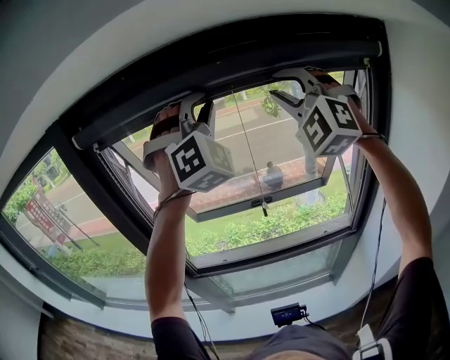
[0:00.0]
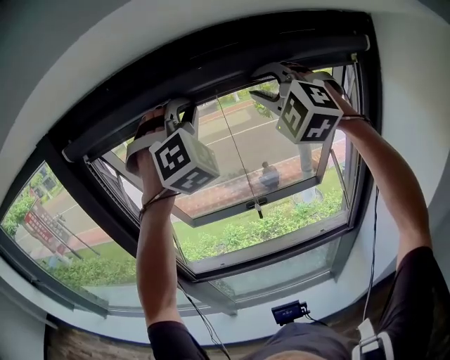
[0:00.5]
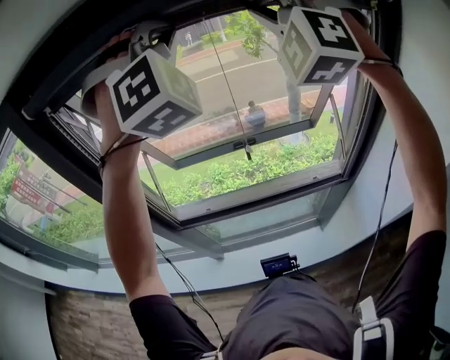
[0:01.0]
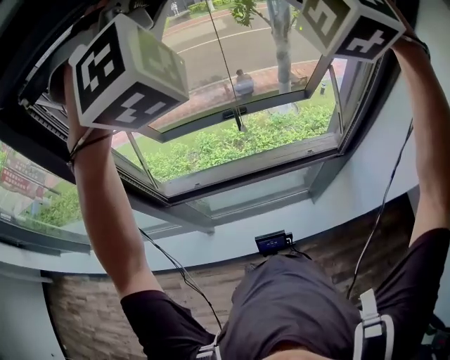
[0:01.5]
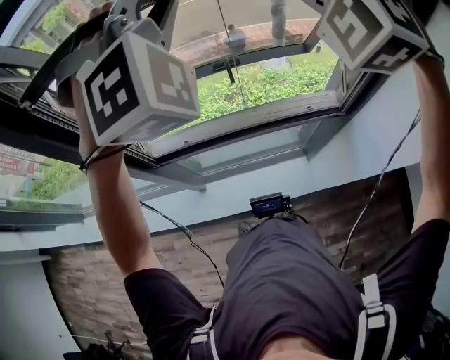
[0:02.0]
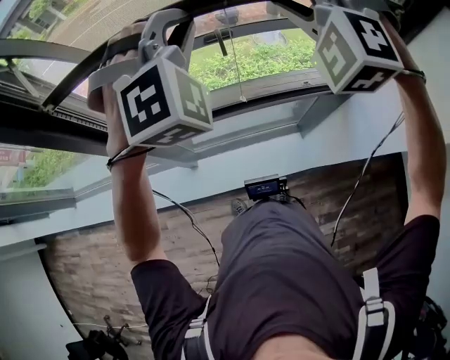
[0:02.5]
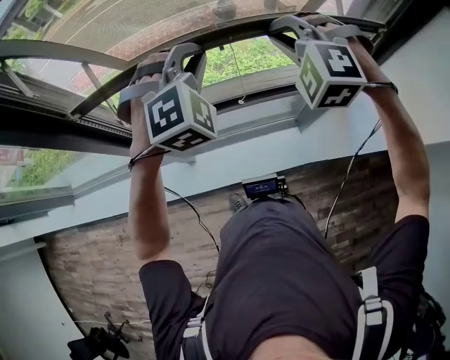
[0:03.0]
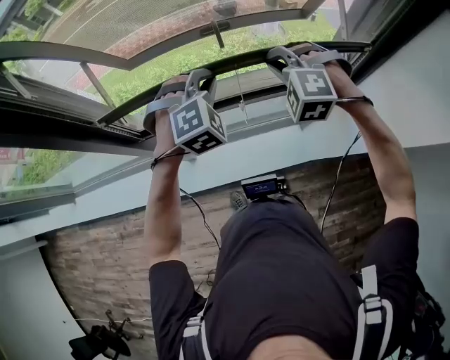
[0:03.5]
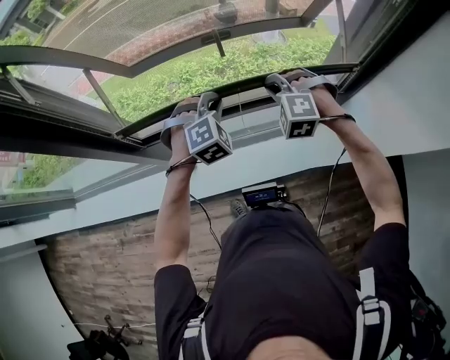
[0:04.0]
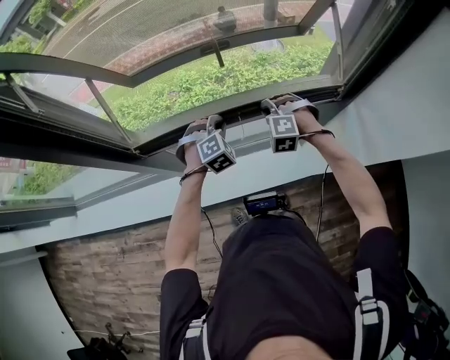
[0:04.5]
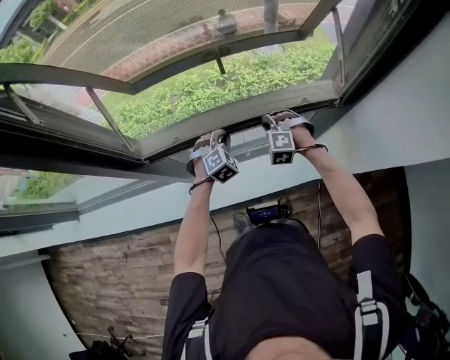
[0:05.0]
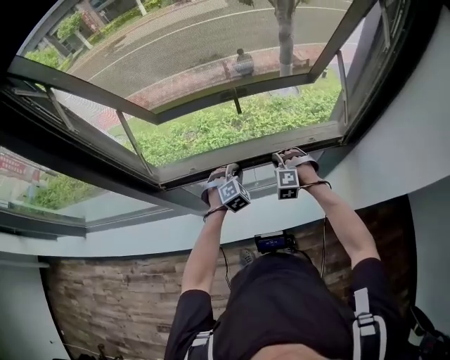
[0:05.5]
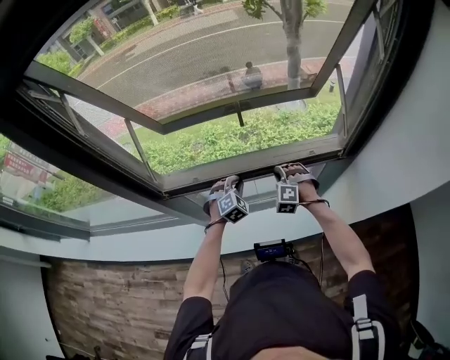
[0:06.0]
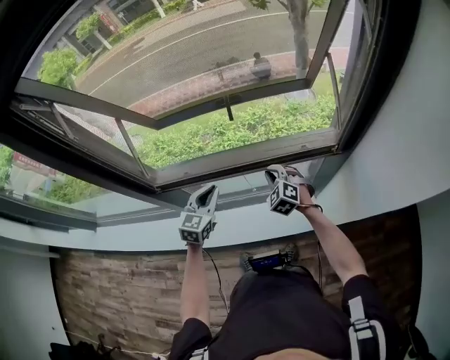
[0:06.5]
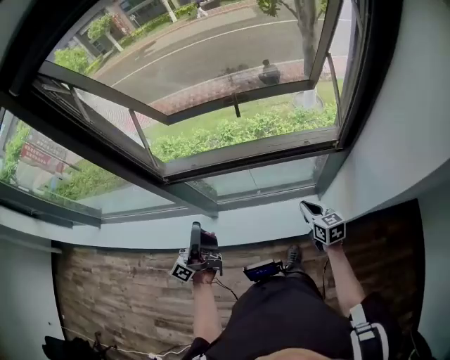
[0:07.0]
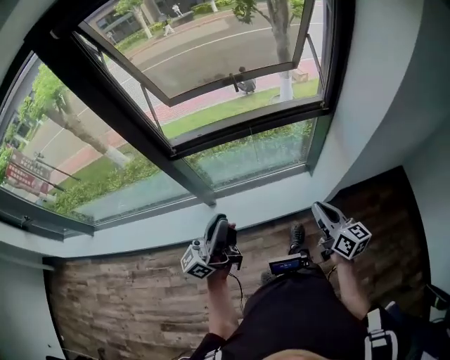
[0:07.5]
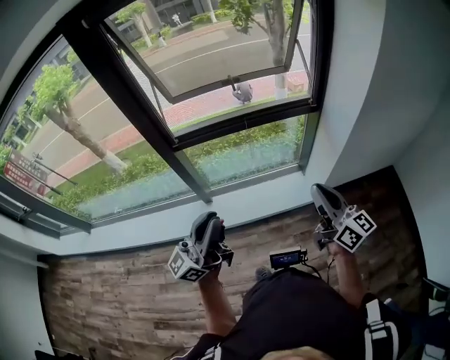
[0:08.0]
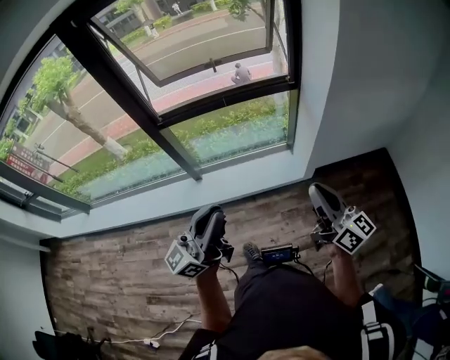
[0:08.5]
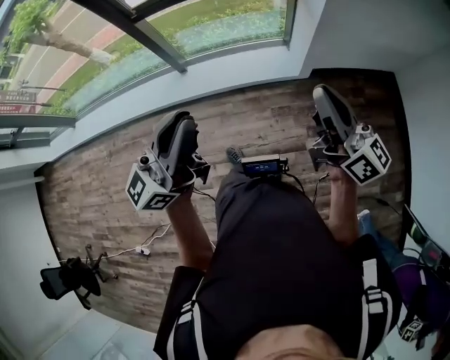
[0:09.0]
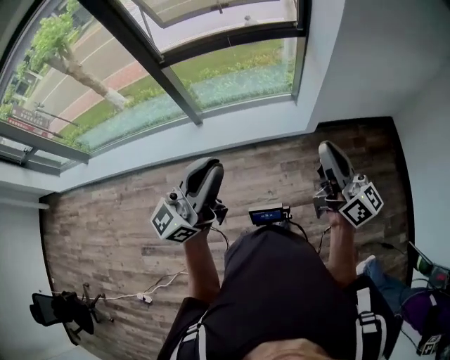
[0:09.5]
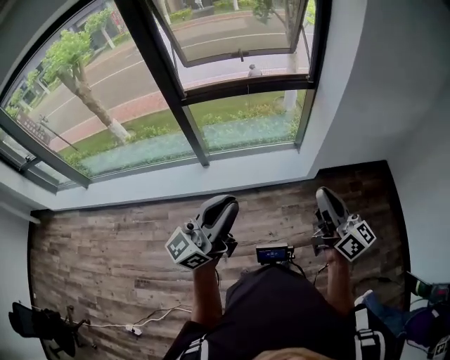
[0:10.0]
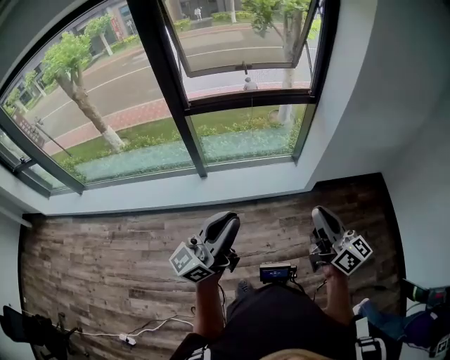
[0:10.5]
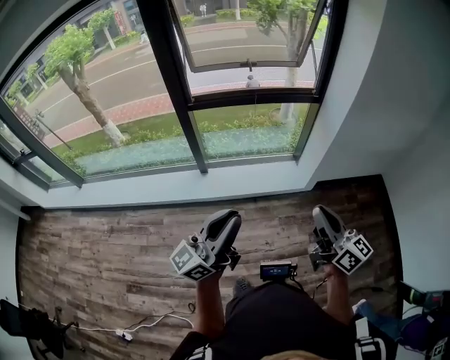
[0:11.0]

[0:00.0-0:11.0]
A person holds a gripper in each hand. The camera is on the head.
0:00.0 to 0:02.0: Both grippers move downward, roughly 15 cm. The right gripper changes its angle by about 30 degrees, and closes its fingers.
0:02.0 to 0:03.5: The grippers both shift downward by approximately 35 cm. The right gripper changes its angle by approximately 30 degrees. The left gripper tilts its fingers some 30 degrees downward.
0:03.5 to 0:05.5: Both grippers move downward, approximately 20 cm.
0:05.5 to 0:07.5: The two grippers travel together, backward, roughly 40 cm. The right gripper twists about 100 degrees clockwise, seen from behind, while the left gripper goes some 25 cm upward, and tips its fingers upward by some 80 degrees.
0:07.5 to 0:09.0: The left gripper moves backward and to the right, about 35 cm, and rotates roughly 20 degrees. Meanwhile the right gripper is displaced backward, to the right and upward by some 30 cm, and changes its angle by approximately 20 degrees.
0:09.0 to 0:11.0: Both grippers travel together to the left and backward, approximately 15 cm.

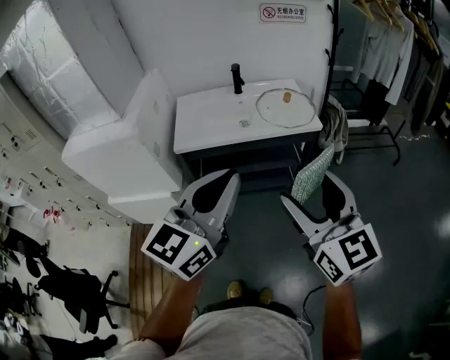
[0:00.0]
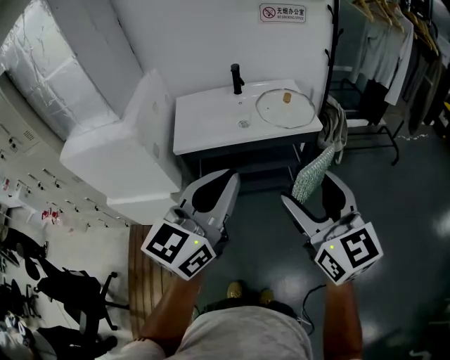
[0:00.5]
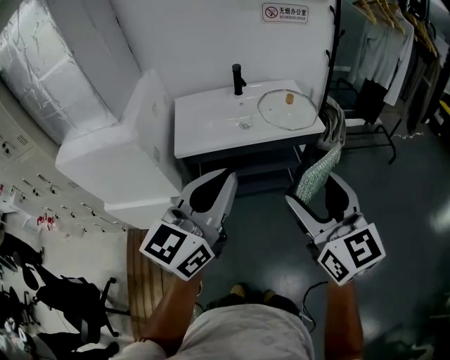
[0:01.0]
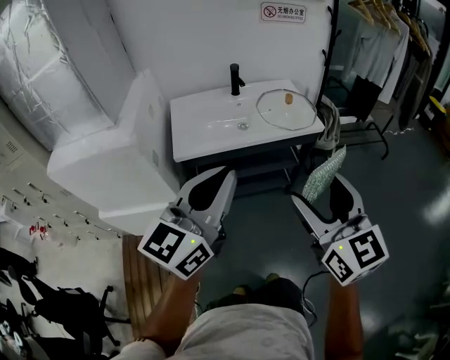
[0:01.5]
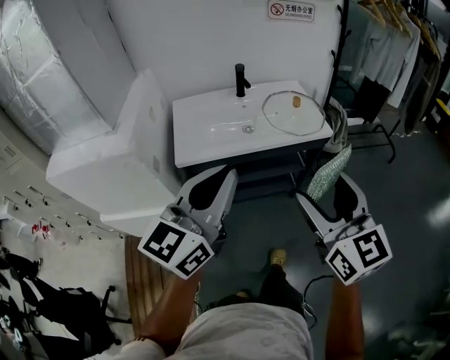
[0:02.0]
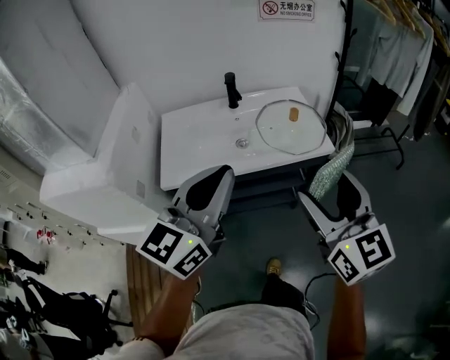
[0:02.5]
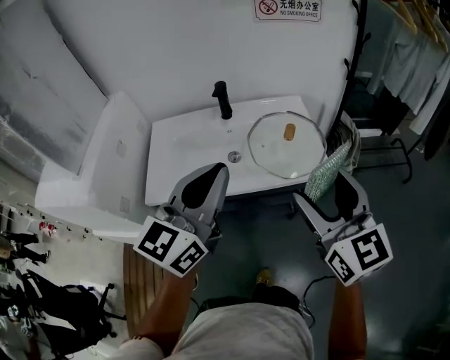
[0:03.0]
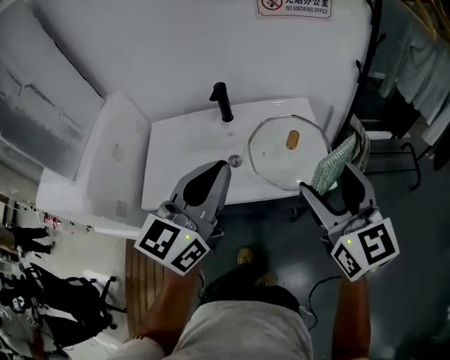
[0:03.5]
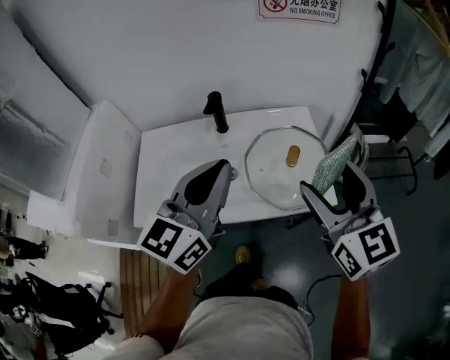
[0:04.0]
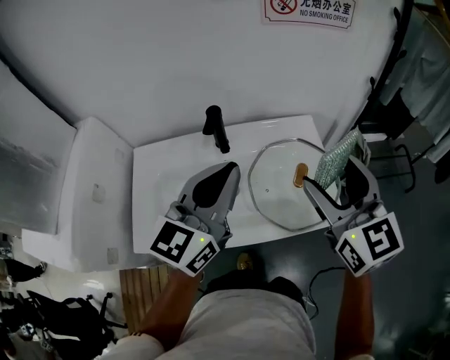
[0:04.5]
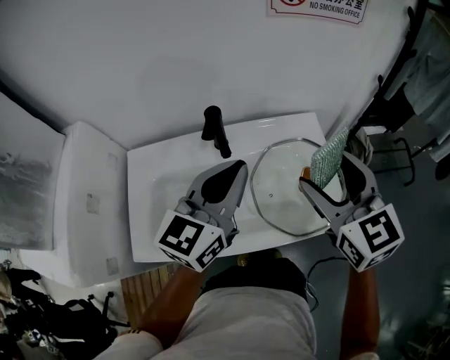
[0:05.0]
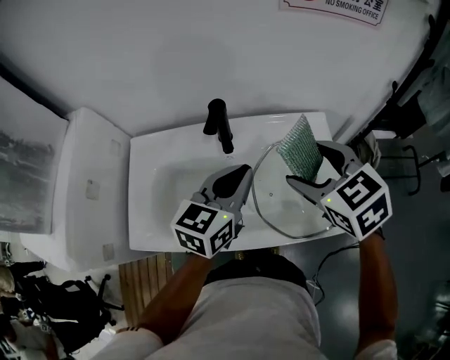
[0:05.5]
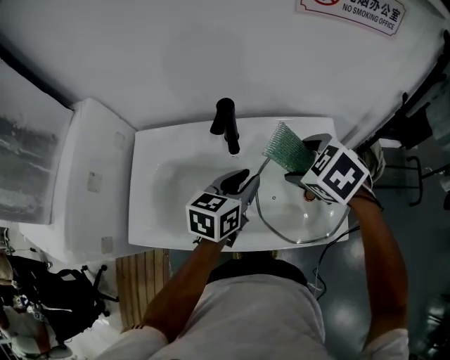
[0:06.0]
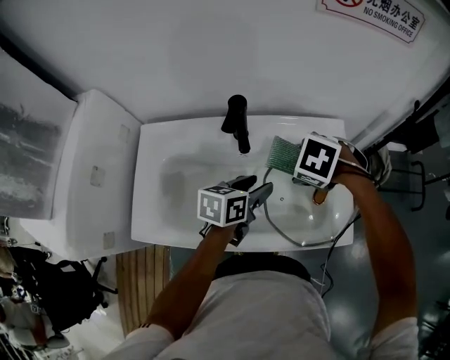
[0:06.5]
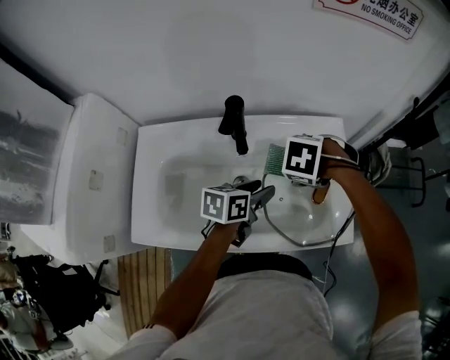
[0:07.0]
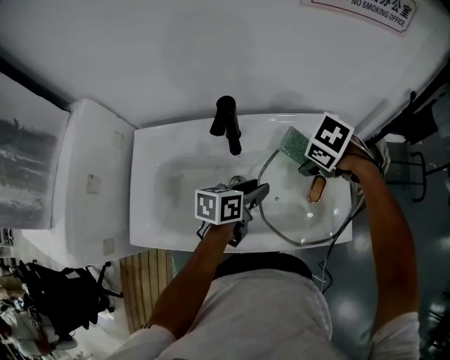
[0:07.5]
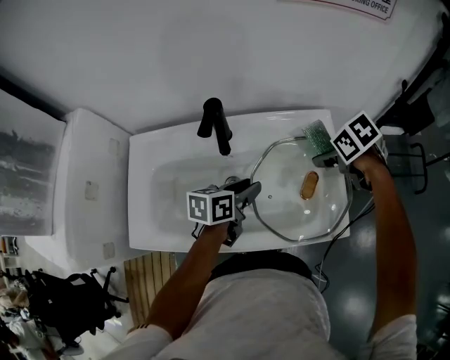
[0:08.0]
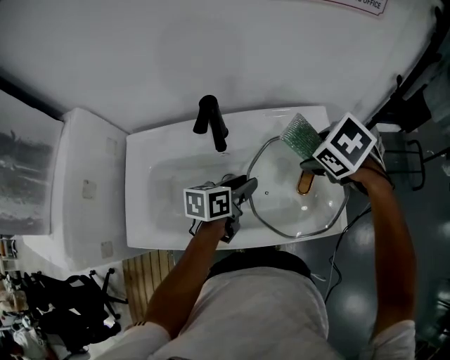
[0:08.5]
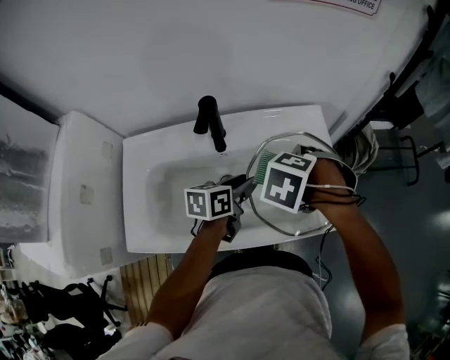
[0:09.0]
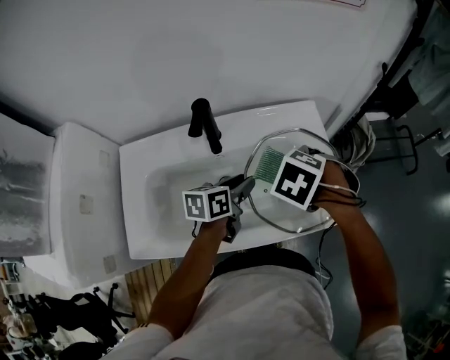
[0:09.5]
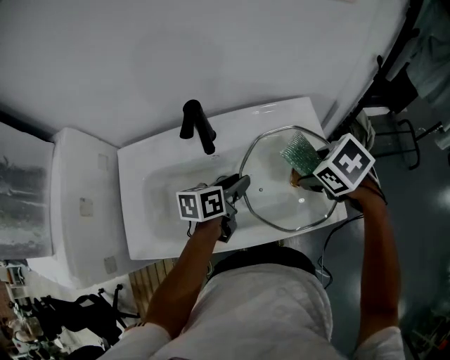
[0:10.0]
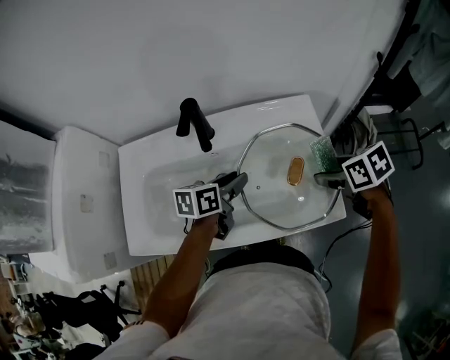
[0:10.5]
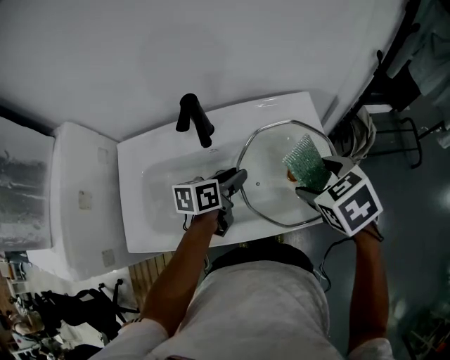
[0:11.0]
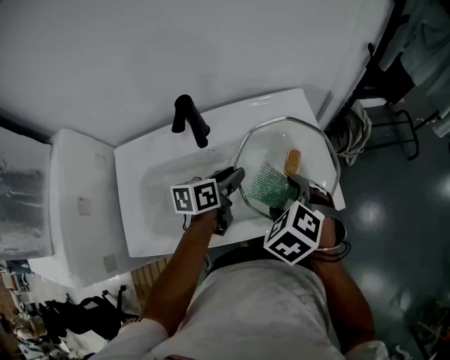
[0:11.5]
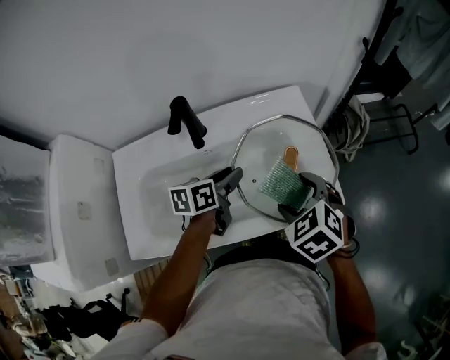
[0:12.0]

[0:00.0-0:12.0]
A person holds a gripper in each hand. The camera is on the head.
0:00.0 to 0:02.0: The right gripper travels forward and to the left by about 10 cm; the left gripper is displaced to the left and forward by approximately 15 cm.
0:02.0 to 0:04.0: Both grippers move forward, roughly 35 cm.
0:04.0 to 0:06.0: The right gripper heads forward and downward, covering roughly 25 cm, and angles its fingers downward, by about 50 degrees. Meanwhile the left gripper shifts approximately 25 cm downward and forward, changes its angle by some 30 degrees, and opens its fingers.
0:06.0 to 0:08.0: The left gripper goes some 10 cm downward, and changes its angle by some 20 degrees. The right gripper changes place by some 15 cm, and swivels some 40 degrees.
0:08.0 to 0:10.0: The right gripper changes place by approximately 10 cm.
0:10.0 to 0:12.0: The right gripper moves backward, about 10 cm, moves some 5 cm to the right and comes back, and turns by about 20 degrees.

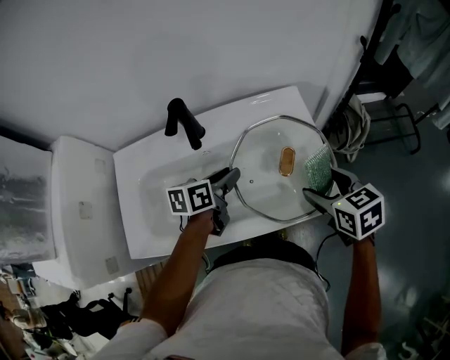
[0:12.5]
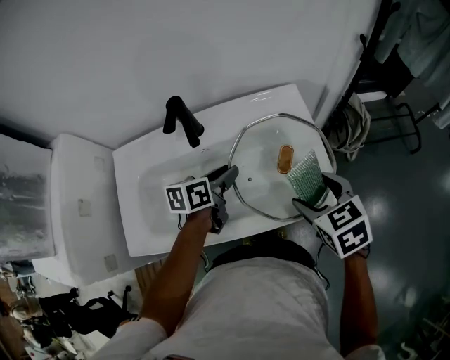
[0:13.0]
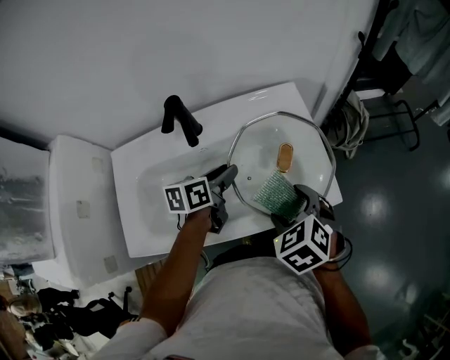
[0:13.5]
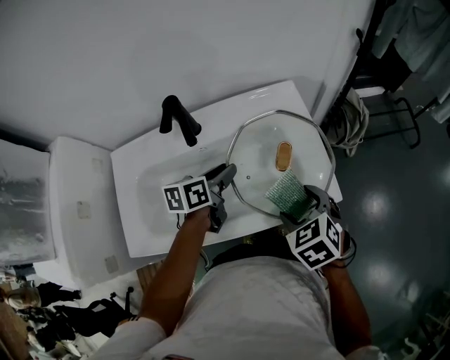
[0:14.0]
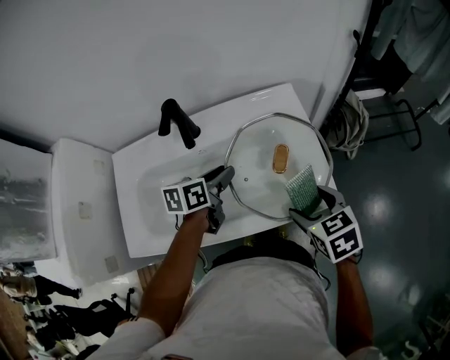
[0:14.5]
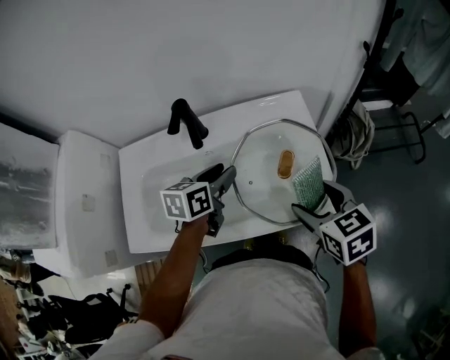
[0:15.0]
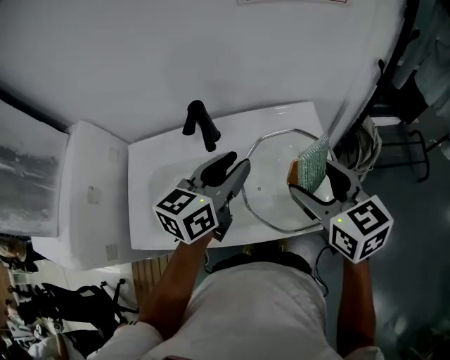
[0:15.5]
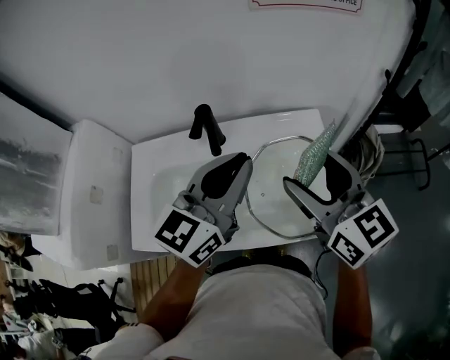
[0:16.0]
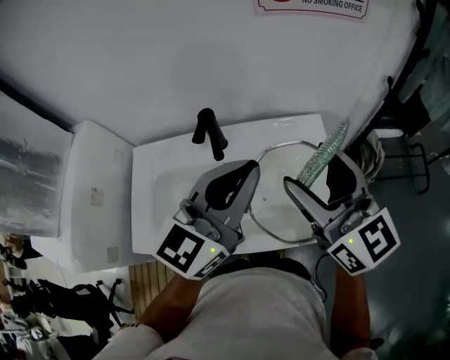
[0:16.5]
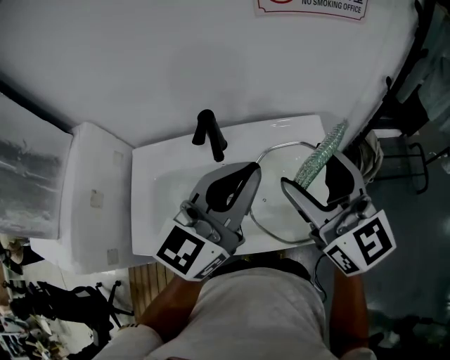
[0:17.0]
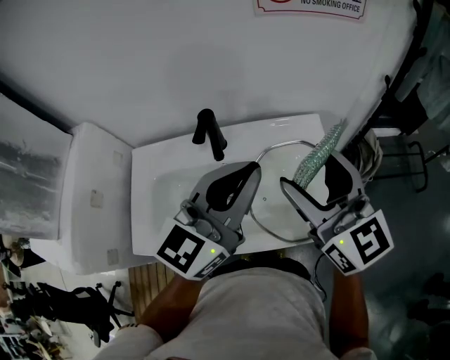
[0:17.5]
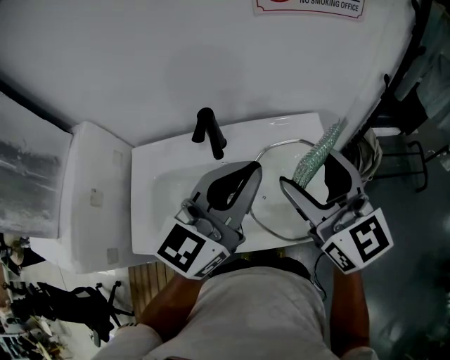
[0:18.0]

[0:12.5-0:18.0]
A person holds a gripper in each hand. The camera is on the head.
0:12.5 to 0:14.5: The right gripper is displaced backward by some 5 cm, and moves roughly 10 cm to the left and comes back.
0:14.5 to 0:16.0: The right gripper is displaced upward and forward by about 20 cm, and angles its fingers upward, by some 40 degrees. The left gripper is displaced upward by approximately 25 cm, rotates about 50 degrees, and closes.
0:16.0 to 0:18.0: The grippers stay close to where they were, moving slightly.
